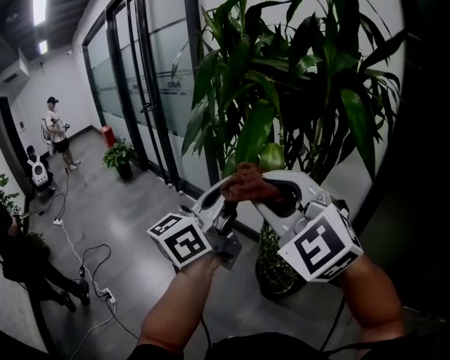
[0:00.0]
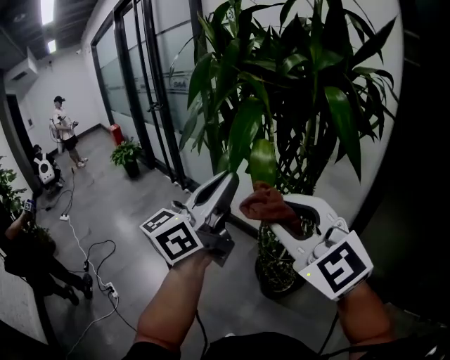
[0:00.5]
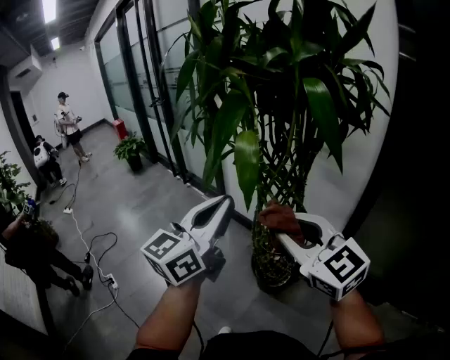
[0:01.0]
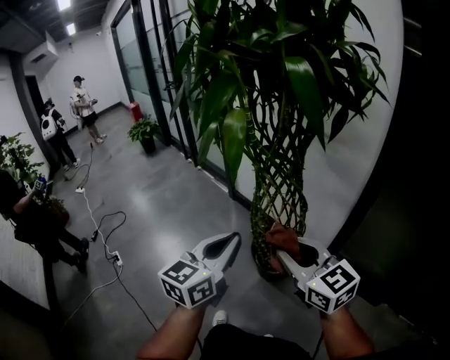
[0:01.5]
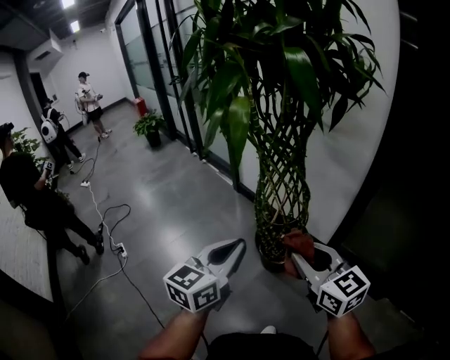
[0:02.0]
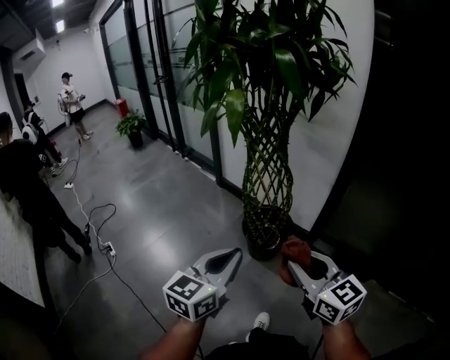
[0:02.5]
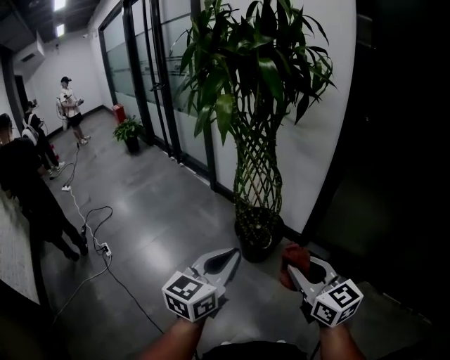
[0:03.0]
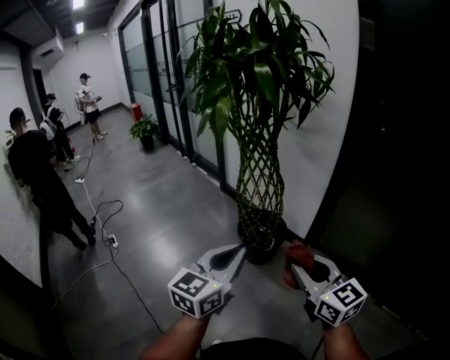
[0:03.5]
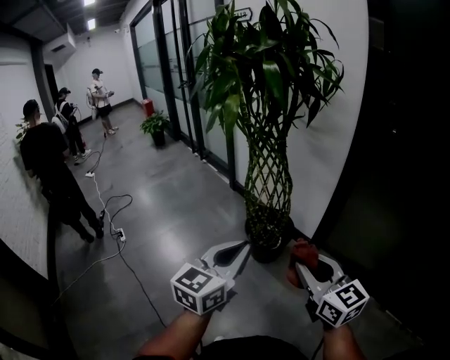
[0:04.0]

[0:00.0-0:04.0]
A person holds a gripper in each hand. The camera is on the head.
0:00.0 to 0:02.0: The right gripper travels to the right, downward and backward by roughly 35 cm, and twists some 50 degrees clockwise, seen from behind. The left gripper is displaced downward, backward and to the right by approximately 30 cm, and turns by approximately 30 degrees.
0:02.0 to 0:04.0: The grippers both shift backward and to the right by approximately 20 cm.

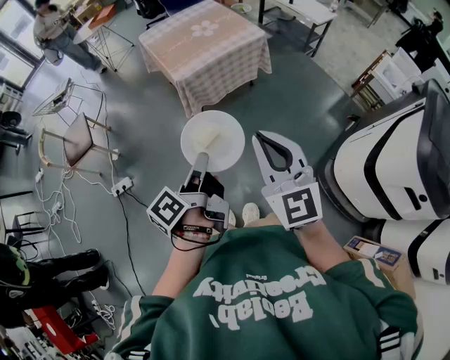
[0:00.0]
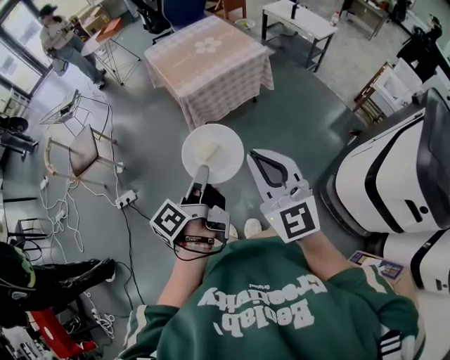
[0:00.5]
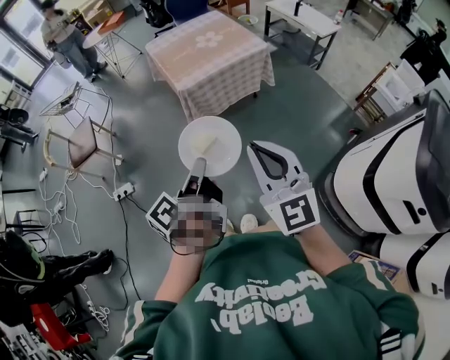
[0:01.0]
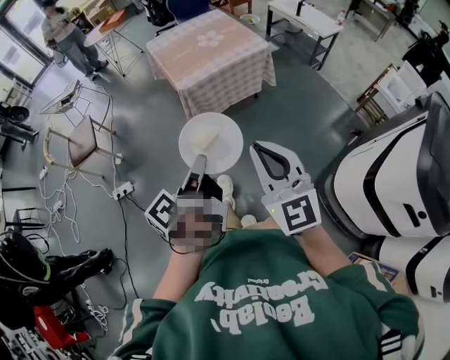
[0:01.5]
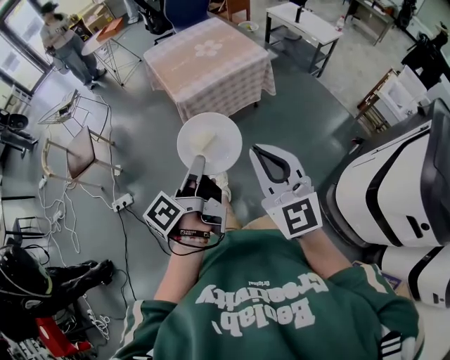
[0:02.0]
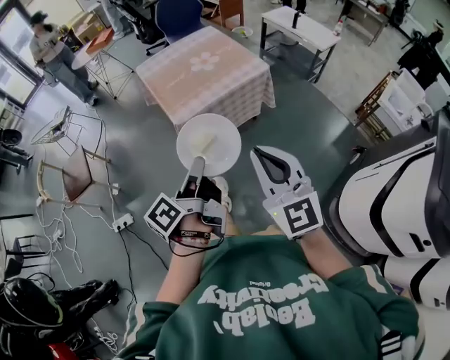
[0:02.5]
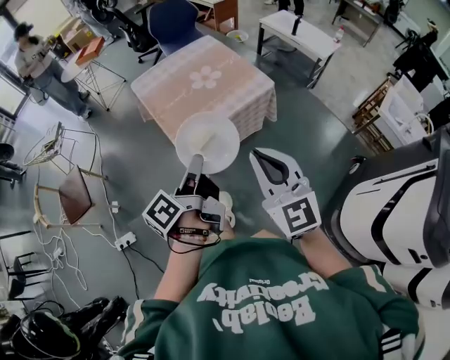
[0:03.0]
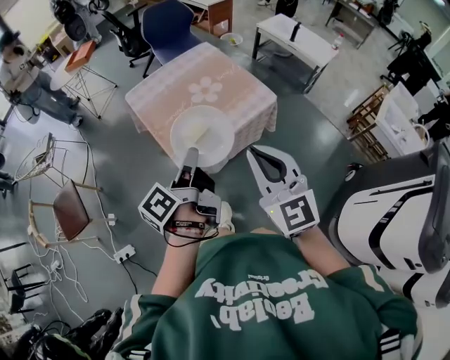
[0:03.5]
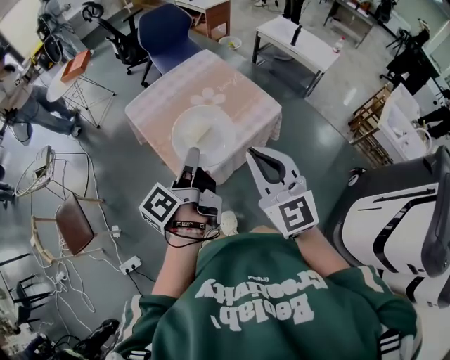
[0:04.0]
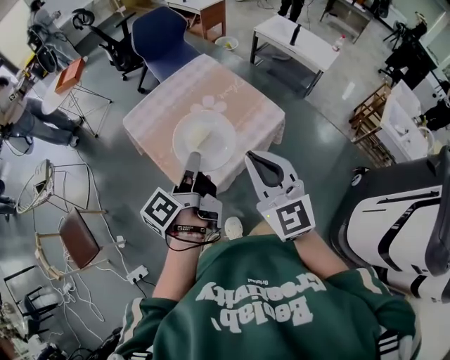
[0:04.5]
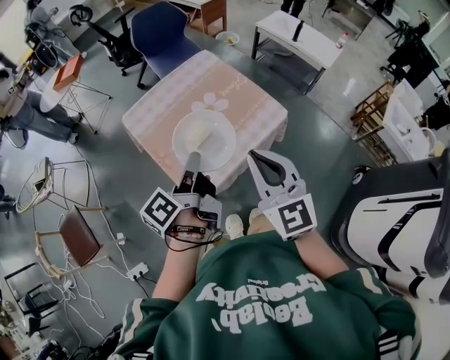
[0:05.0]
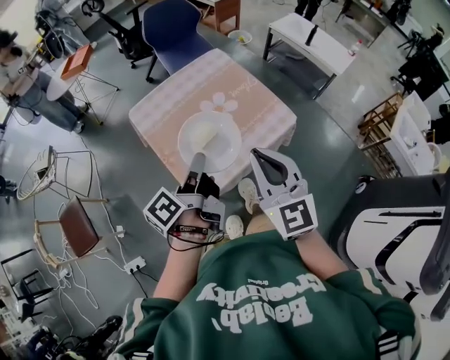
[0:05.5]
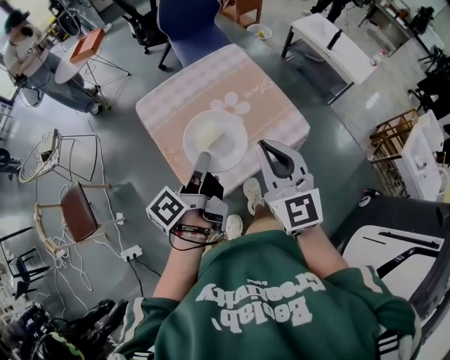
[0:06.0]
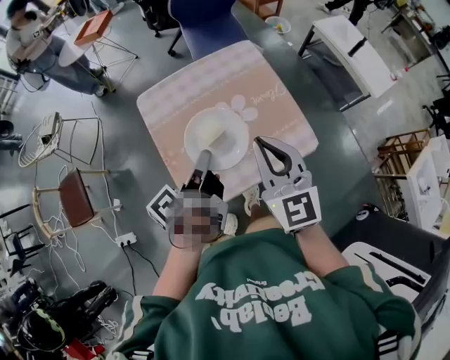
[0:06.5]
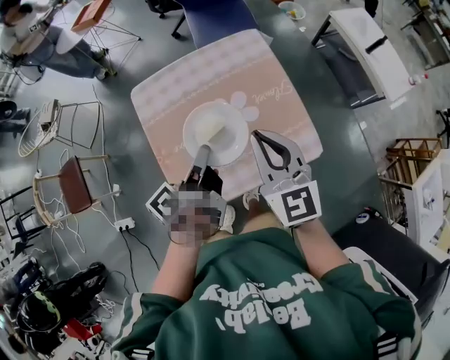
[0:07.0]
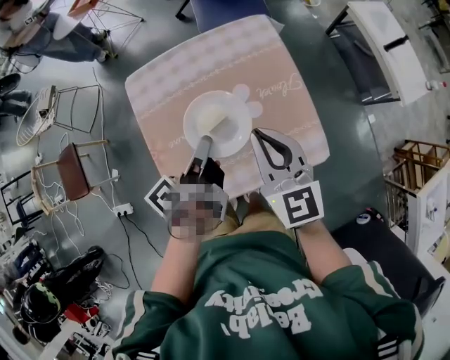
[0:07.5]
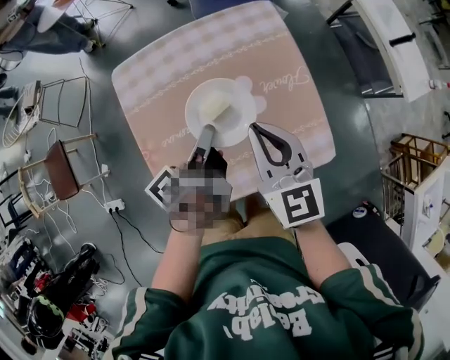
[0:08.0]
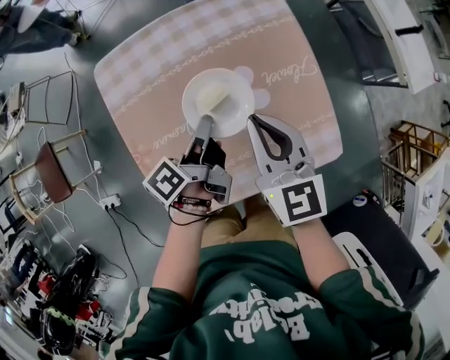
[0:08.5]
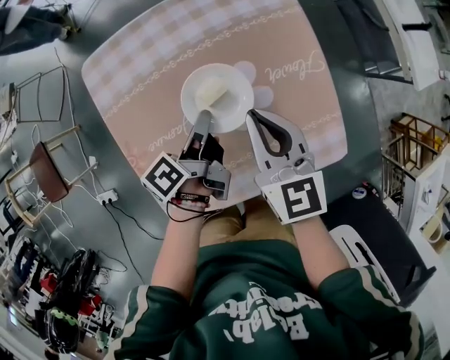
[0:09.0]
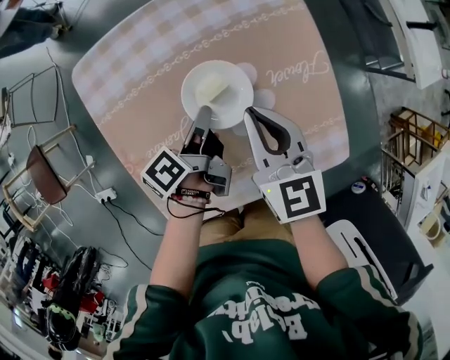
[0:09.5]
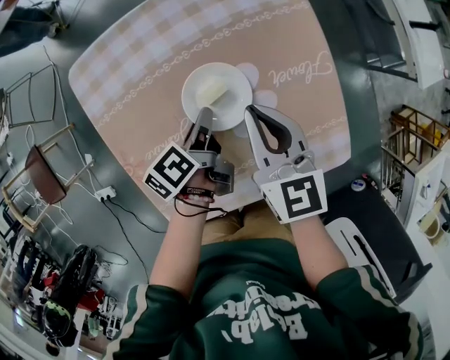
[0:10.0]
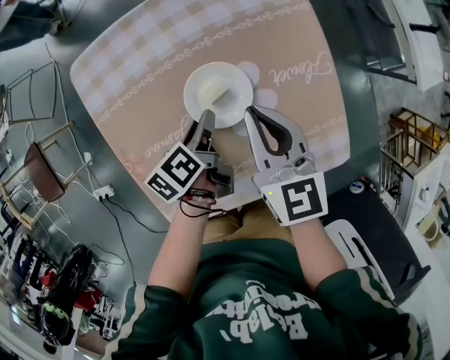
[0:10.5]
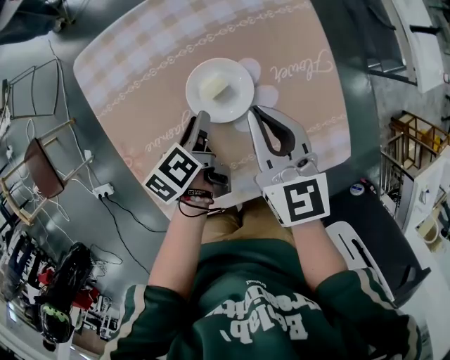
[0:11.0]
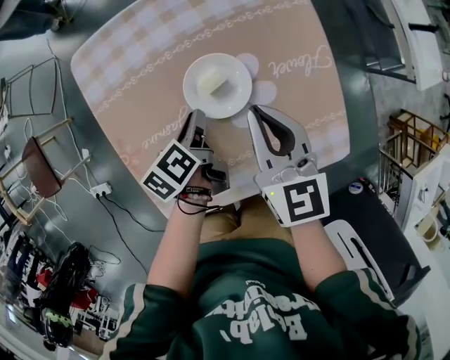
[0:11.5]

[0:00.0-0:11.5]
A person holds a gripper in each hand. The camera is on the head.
0:02.0 to 0:04.0: The right gripper changes place by roughly 40 cm.
0:04.0 to 0:06.0: The right gripper shifts by approximately 15 cm.
0:06.0 to 0:07.5: The right gripper moves approximately 20 cm, and turns by approximately 20 degrees.
0:07.5 to 0:09.5: The right gripper goes about 15 cm downward.

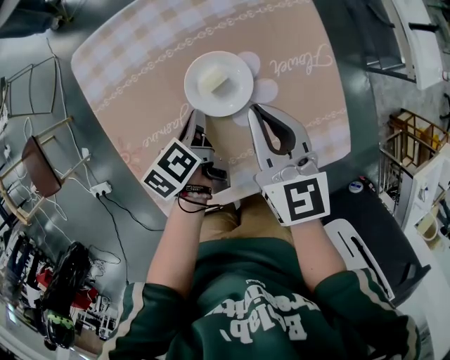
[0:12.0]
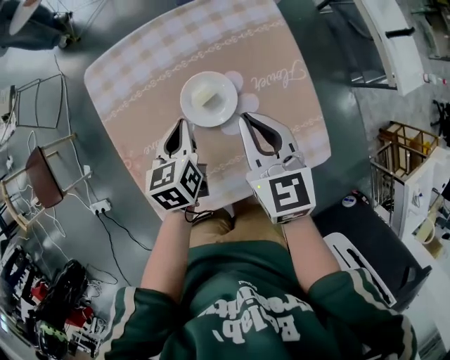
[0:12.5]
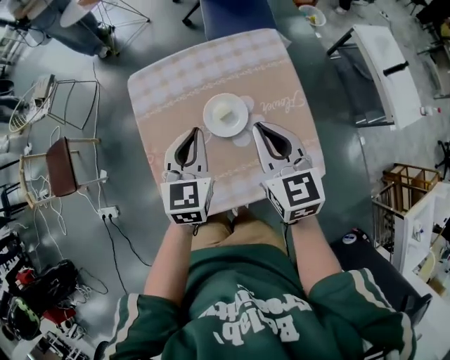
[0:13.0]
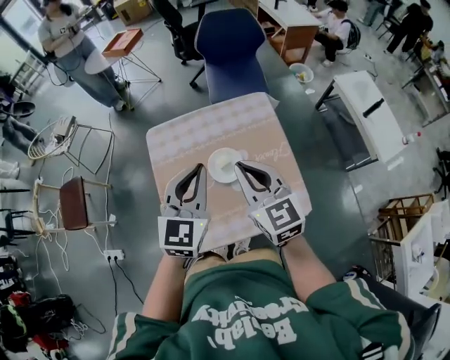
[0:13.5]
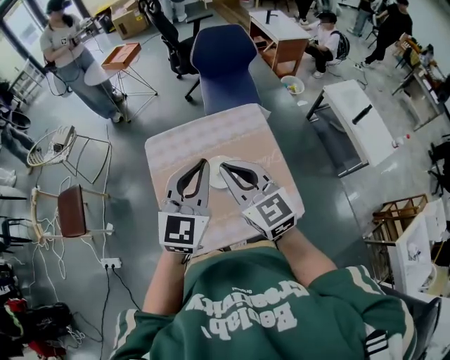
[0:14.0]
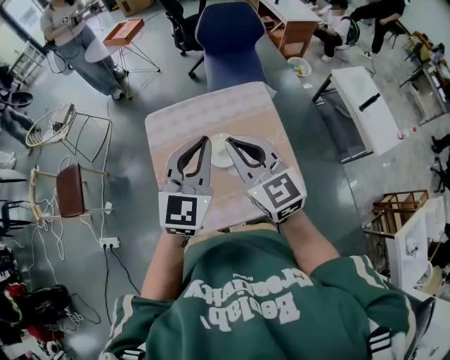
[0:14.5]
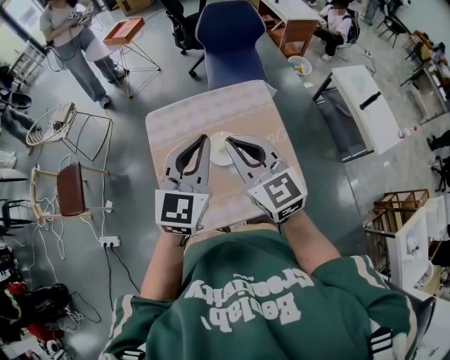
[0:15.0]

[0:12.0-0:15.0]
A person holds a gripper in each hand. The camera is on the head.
0:12.0 to 0:13.5: The right gripper shifts roughly 20 cm upward, and rotates about 20 degrees.
0:13.5 to 0:15.0: The right gripper ends up approximately 5 cm from where it was.

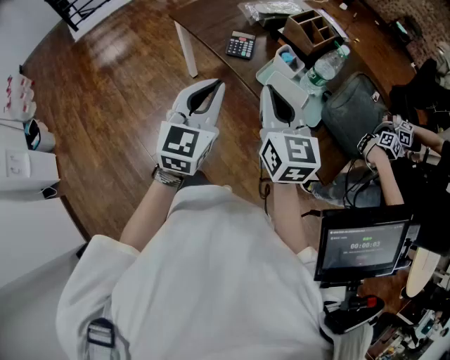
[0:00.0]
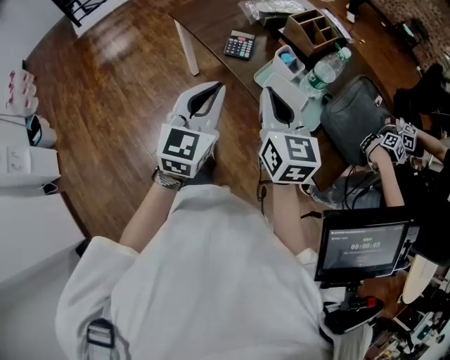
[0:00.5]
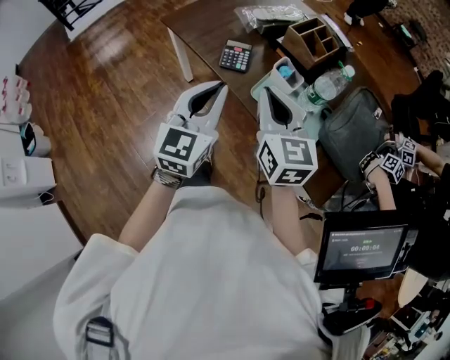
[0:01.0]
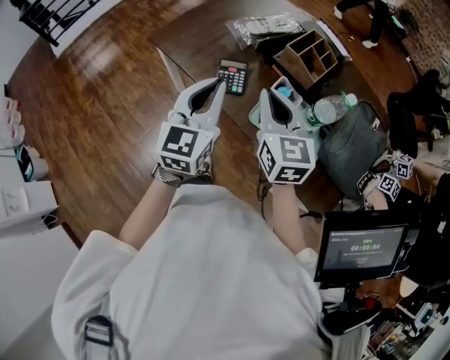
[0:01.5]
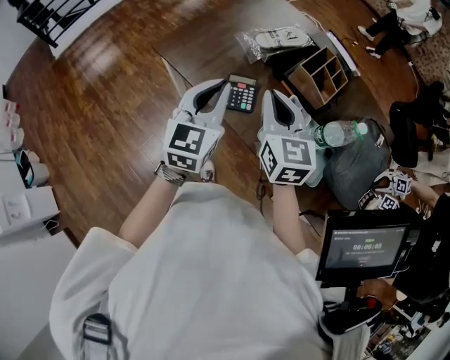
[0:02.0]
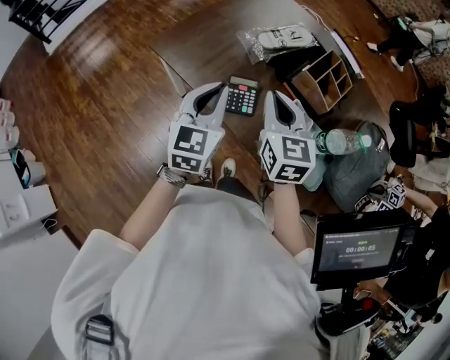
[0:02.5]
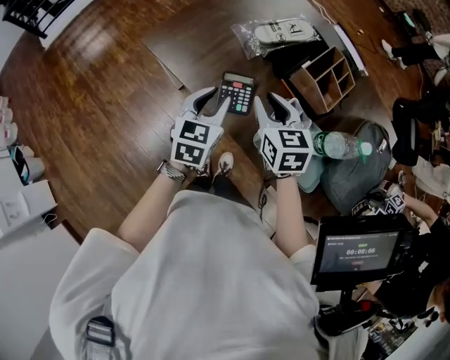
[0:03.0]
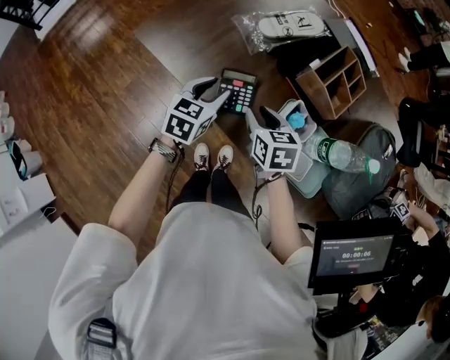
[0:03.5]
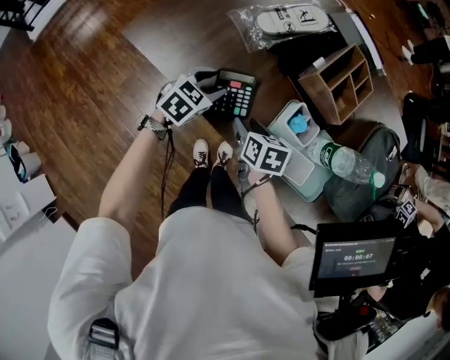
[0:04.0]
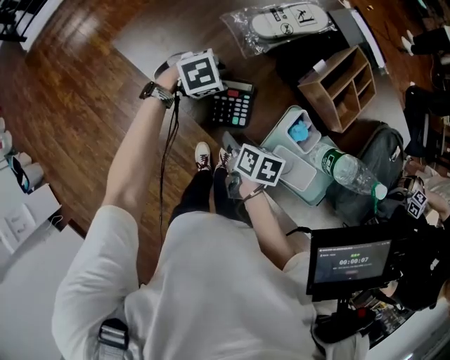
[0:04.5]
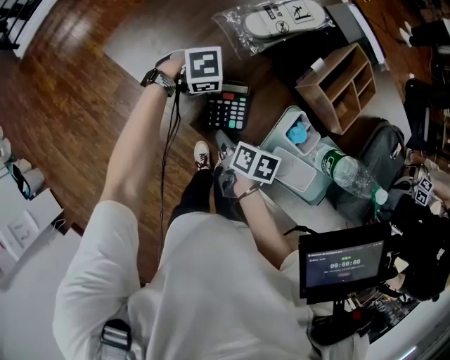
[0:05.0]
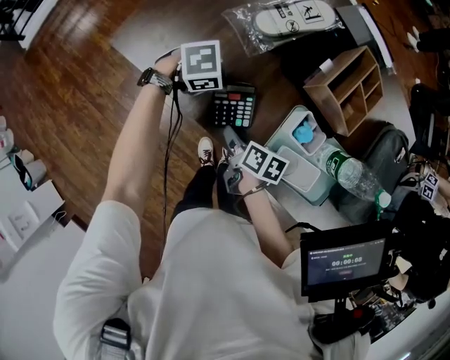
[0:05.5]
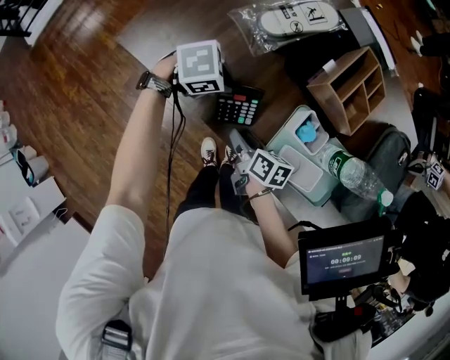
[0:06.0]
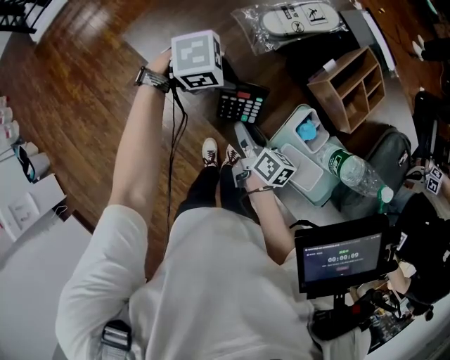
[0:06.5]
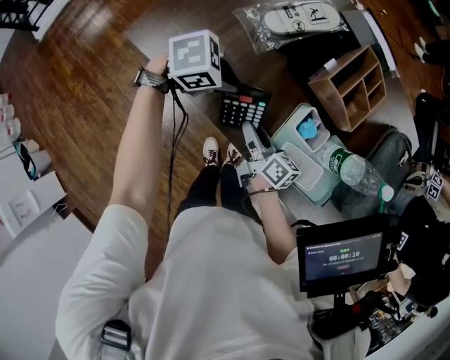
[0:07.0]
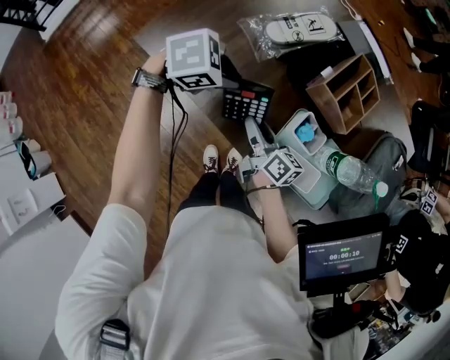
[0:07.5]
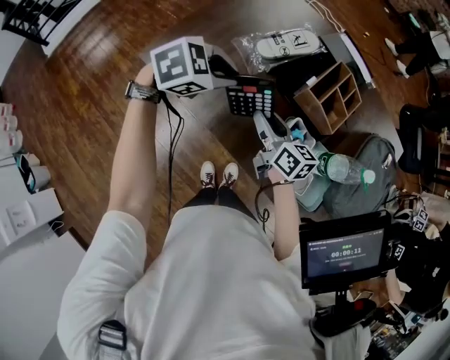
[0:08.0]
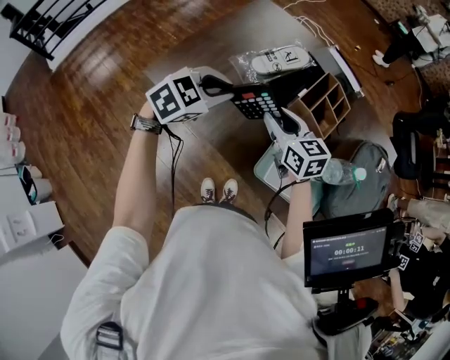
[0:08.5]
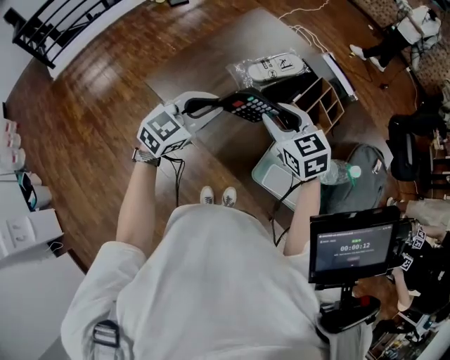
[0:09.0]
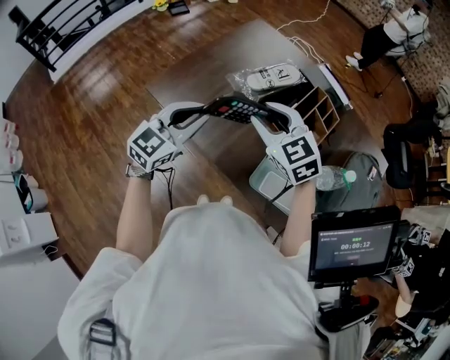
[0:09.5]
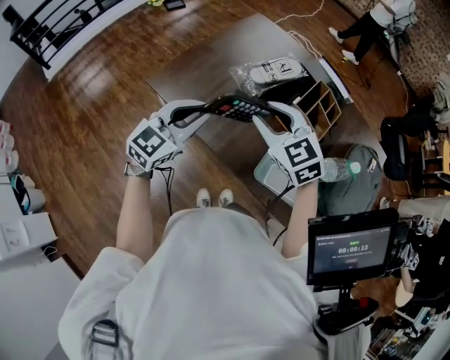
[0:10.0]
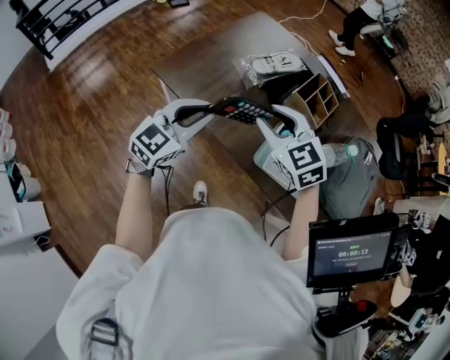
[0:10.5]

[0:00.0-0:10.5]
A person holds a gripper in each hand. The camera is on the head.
0:00.0 to 0:02.0: Both grippers travel together forward, about 25 cm.
0:02.0 to 0:04.0: The left gripper moves downward and forward, about 30 cm, points its fingers some 40 degrees further downward, and opens. Meanwhile the right gripper goes roughly 30 cm downward, tilts its fingers approximately 40 degrees downward, and opens its fingers.
0:04.0 to 0:06.5: The left gripper heads upward, covering about 5 cm, rotates about 40 degrees, and closes its fingers. The right gripper swivels some 30 degrees.
0:06.5 to 0:08.5: The grippers both shift upward by roughly 20 cm. The right gripper twists some 50 degrees counterclockwise, seen from behind. Meanwhile the left gripper changes its angle by some 40 degrees.
0:08.5 to 0:10.5: The left gripper travels backward by approximately 10 cm, and rotates some 30 degrees, while the right gripper is displaced backward and upward by roughly 15 cm, and turns by some 30 degrees.
